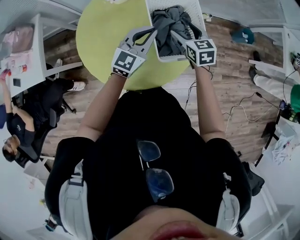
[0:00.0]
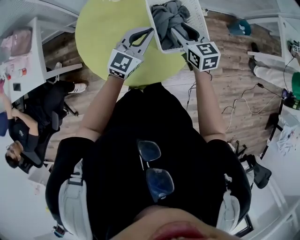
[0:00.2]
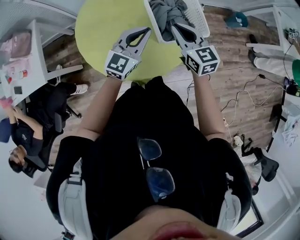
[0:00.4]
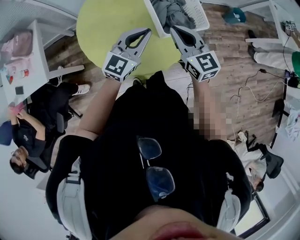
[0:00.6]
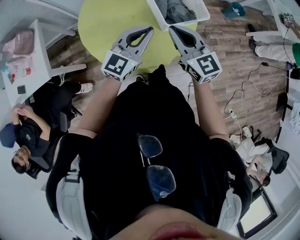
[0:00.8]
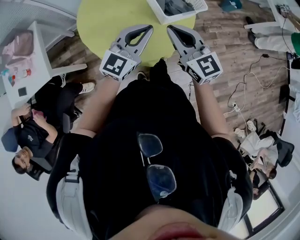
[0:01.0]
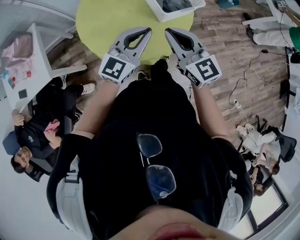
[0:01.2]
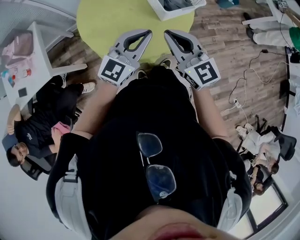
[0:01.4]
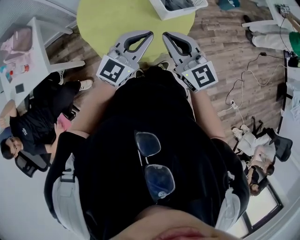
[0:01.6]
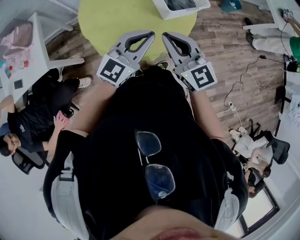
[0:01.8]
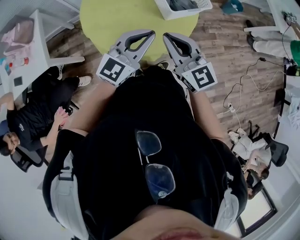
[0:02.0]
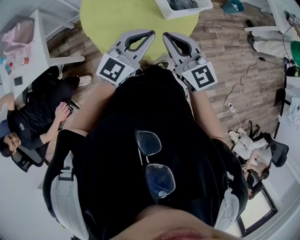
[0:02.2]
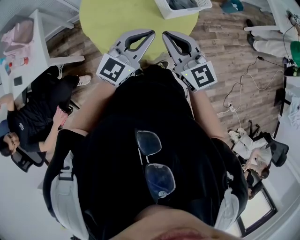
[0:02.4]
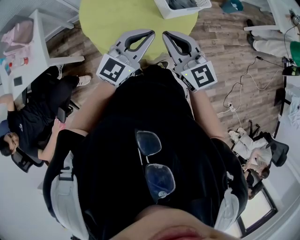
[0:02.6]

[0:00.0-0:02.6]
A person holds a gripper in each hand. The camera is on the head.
0.0 to 1.2 s: The left gripper is displaced backward by roughly 25 cm, while the right gripper moves backward and upward, roughly 35 cm, rotates roughly 30 degrees, and closes.
1.2 to 2.6 s: The grippers stay close to where they were, moving slightly.

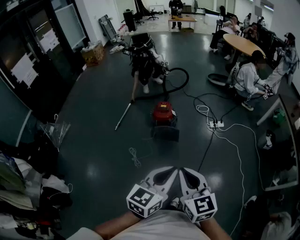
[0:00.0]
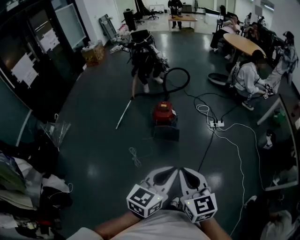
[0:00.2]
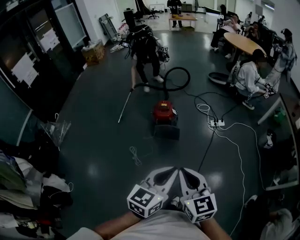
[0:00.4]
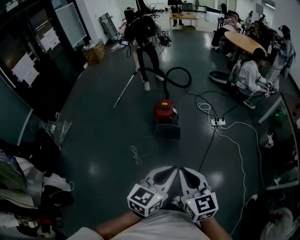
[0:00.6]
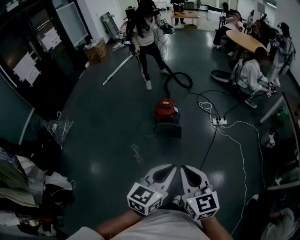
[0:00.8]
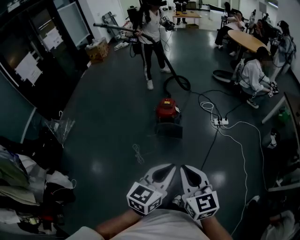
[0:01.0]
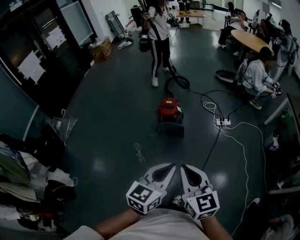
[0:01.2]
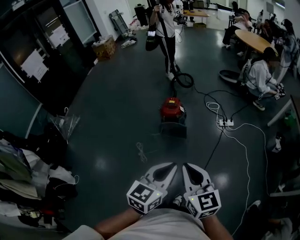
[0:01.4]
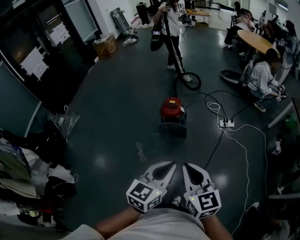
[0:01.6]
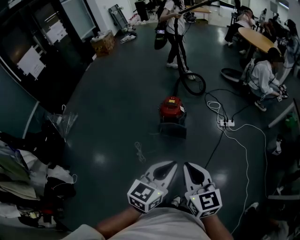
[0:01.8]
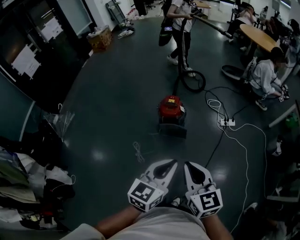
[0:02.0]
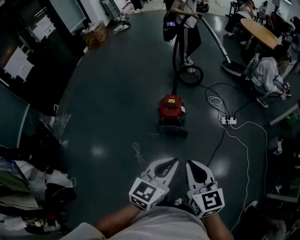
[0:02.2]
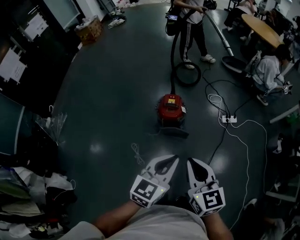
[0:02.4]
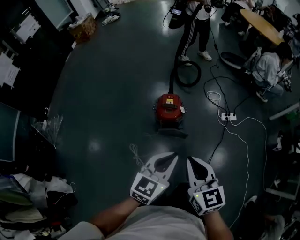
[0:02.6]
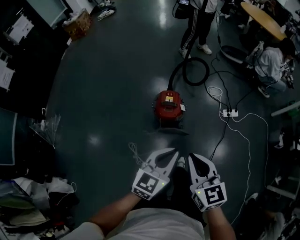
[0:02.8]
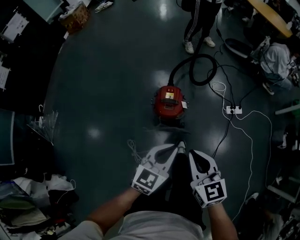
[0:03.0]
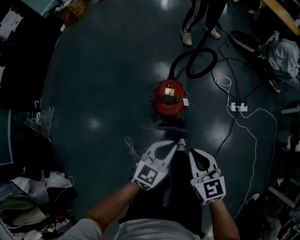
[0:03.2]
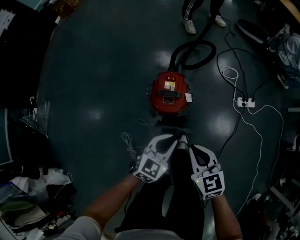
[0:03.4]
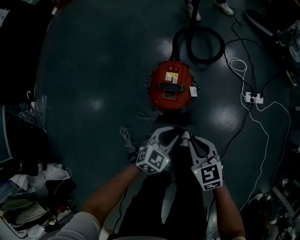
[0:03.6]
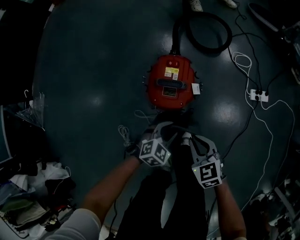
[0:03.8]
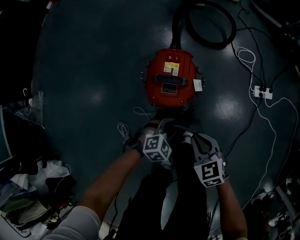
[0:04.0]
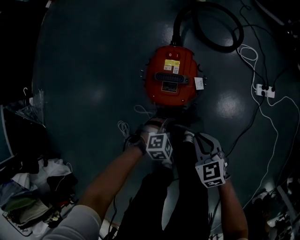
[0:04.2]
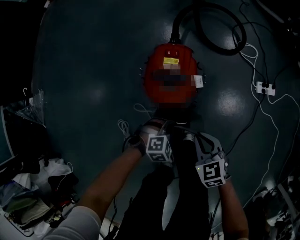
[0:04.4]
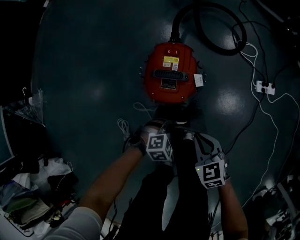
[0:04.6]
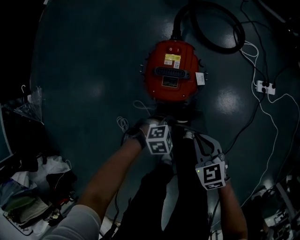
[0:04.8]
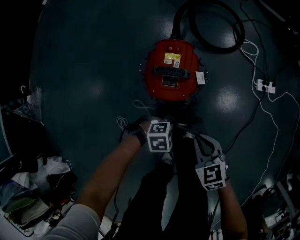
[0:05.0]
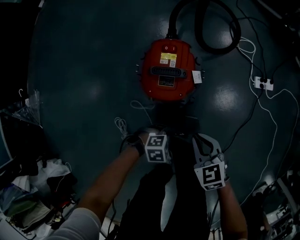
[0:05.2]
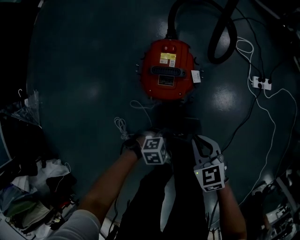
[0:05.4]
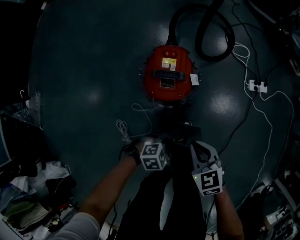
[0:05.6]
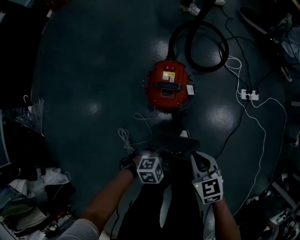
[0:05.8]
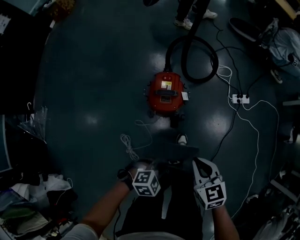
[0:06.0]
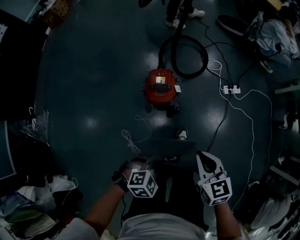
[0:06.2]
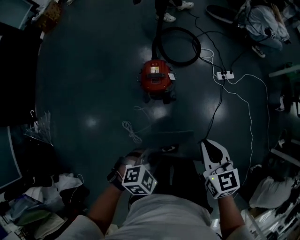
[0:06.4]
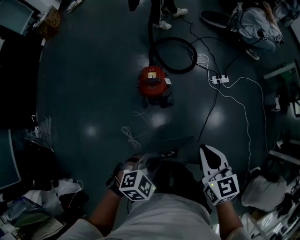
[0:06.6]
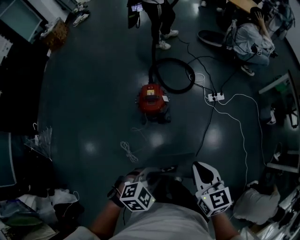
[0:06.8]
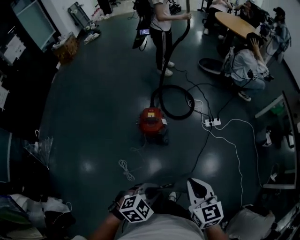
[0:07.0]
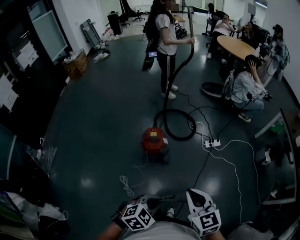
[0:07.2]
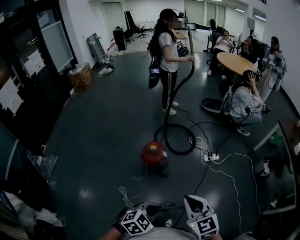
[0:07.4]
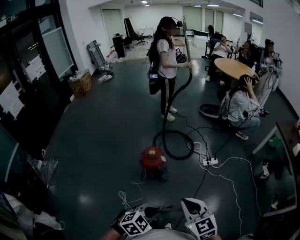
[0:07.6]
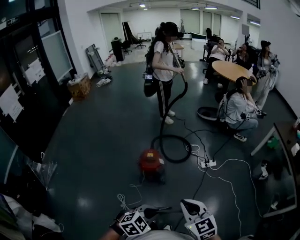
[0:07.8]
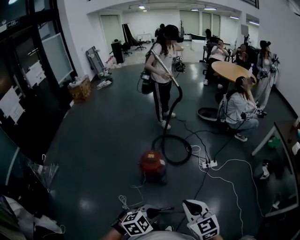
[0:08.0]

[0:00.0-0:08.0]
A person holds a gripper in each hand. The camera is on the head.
0.0 to 1.6 s: The right gripper changes place by approximately 5 cm, while the left gripper changes place by some 5 cm.
1.6 to 3.2 s: Both grippers are carried forward, roughly 50 cm. The grippers both shift downward by some 30 cm.
3.2 to 4.8 s: The grippers both shift downward by roughly 40 cm. The right gripper swivels approximately 20 degrees. Meanwhile the left gripper points its fingers some 40 degrees further downward, and opens, then closes once more.
4.8 to 6.4 s: The grippers both shift upward by some 50 cm. The right gripper changes its angle by roughly 30 degrees.
6.4 to 8.0 s: The left gripper goes roughly 25 cm to the right, upward and backward. Meanwhile the right gripper moves upward, backward and to the right, about 25 cm, and swivels some 20 degrees.

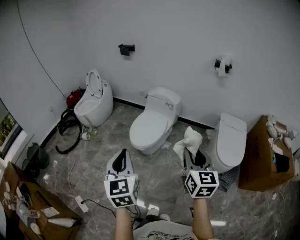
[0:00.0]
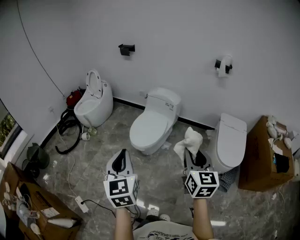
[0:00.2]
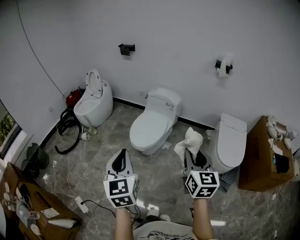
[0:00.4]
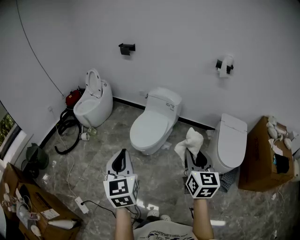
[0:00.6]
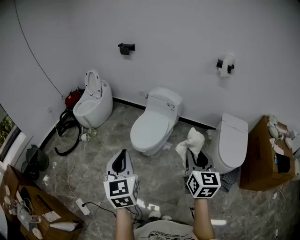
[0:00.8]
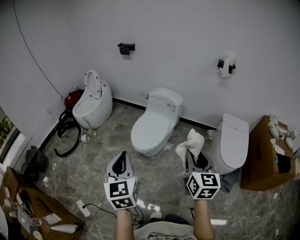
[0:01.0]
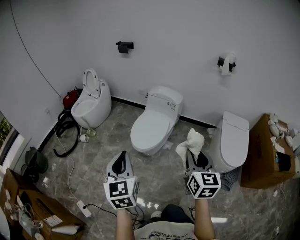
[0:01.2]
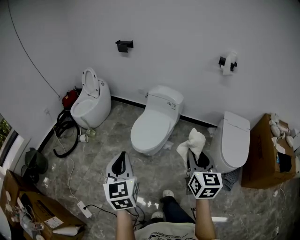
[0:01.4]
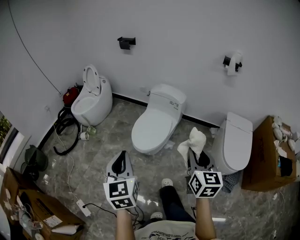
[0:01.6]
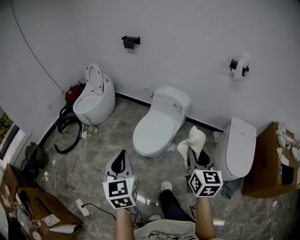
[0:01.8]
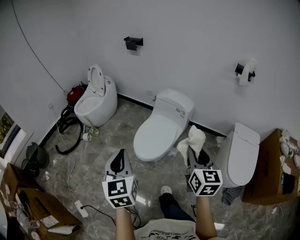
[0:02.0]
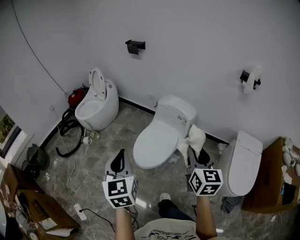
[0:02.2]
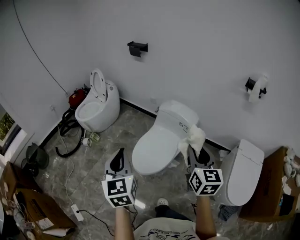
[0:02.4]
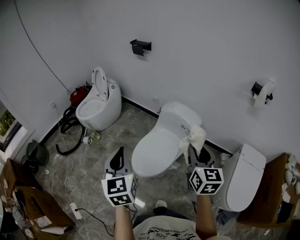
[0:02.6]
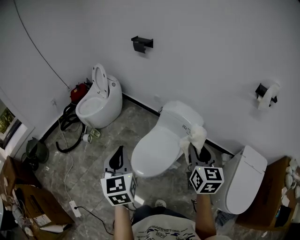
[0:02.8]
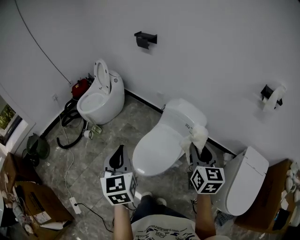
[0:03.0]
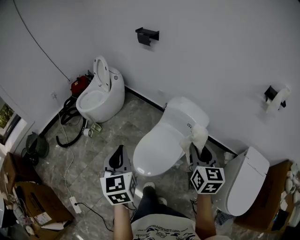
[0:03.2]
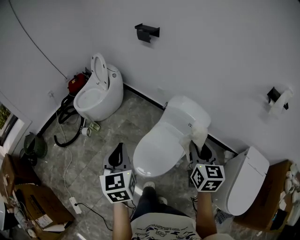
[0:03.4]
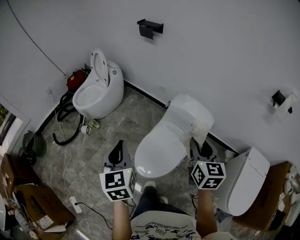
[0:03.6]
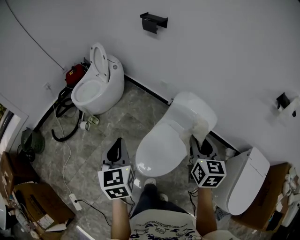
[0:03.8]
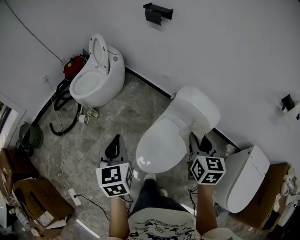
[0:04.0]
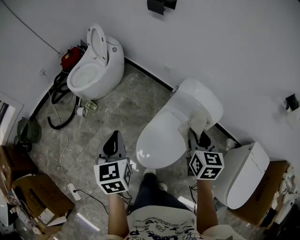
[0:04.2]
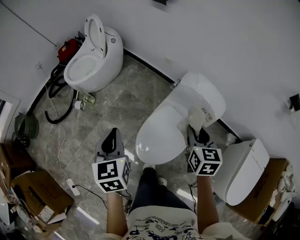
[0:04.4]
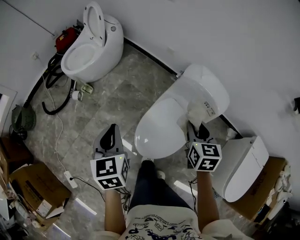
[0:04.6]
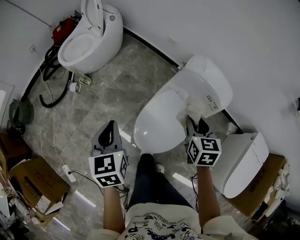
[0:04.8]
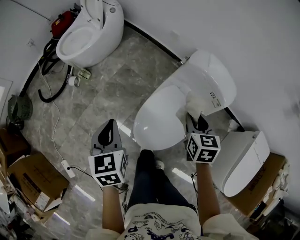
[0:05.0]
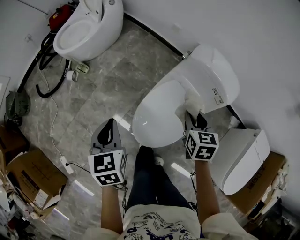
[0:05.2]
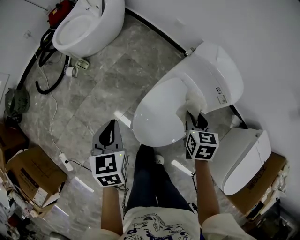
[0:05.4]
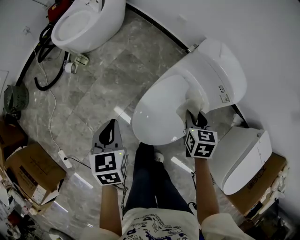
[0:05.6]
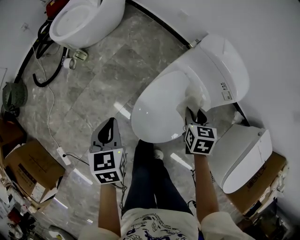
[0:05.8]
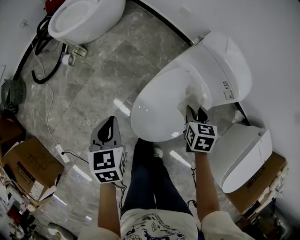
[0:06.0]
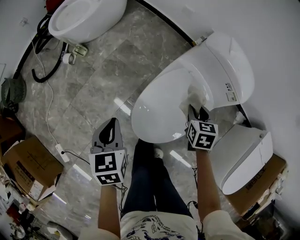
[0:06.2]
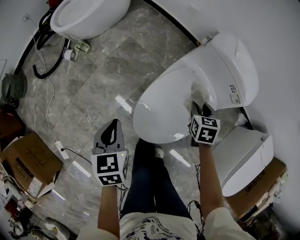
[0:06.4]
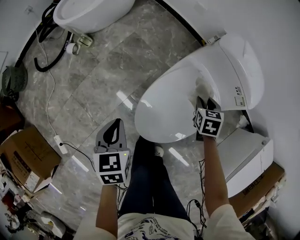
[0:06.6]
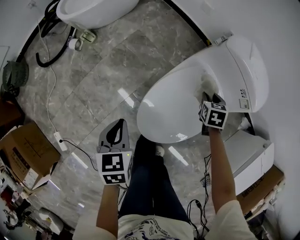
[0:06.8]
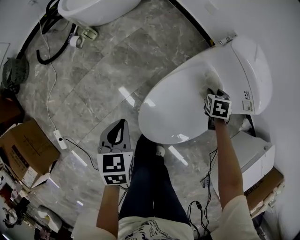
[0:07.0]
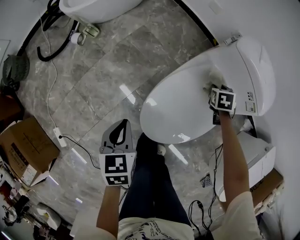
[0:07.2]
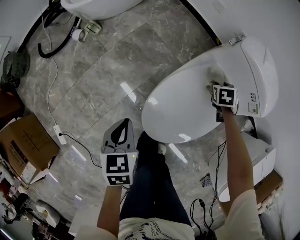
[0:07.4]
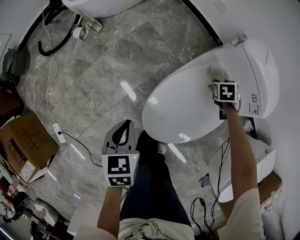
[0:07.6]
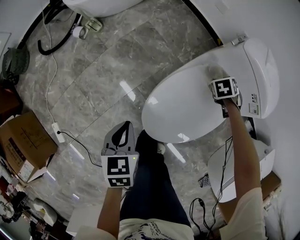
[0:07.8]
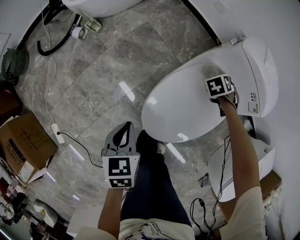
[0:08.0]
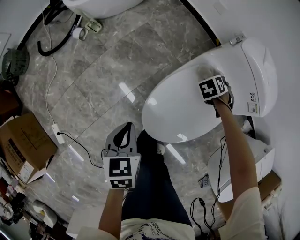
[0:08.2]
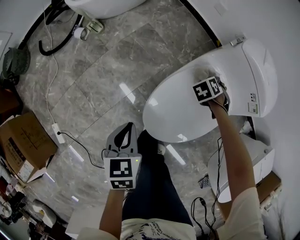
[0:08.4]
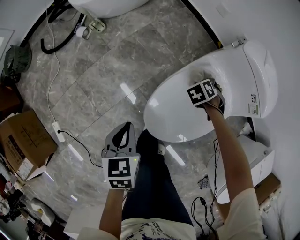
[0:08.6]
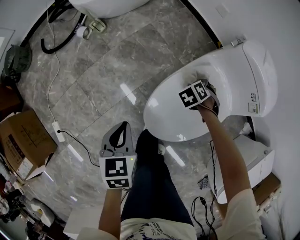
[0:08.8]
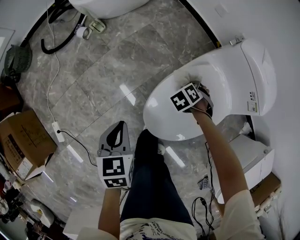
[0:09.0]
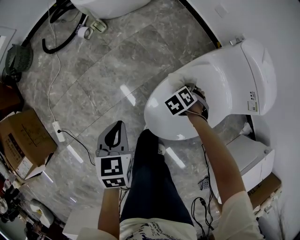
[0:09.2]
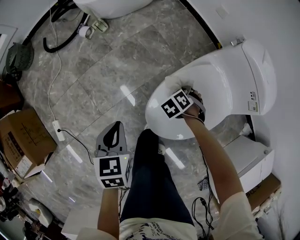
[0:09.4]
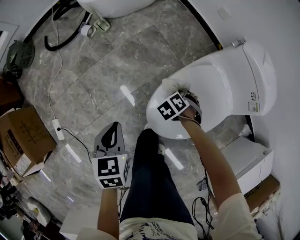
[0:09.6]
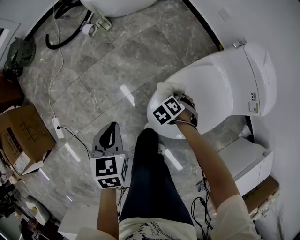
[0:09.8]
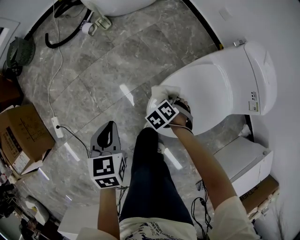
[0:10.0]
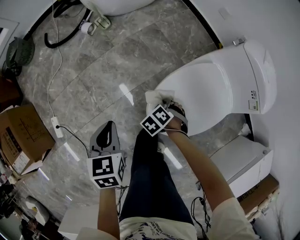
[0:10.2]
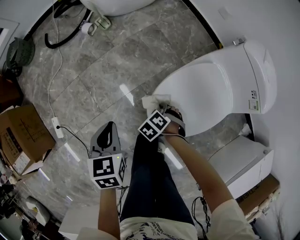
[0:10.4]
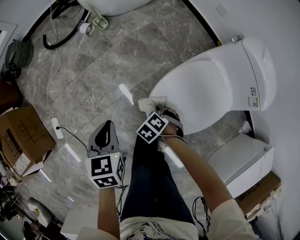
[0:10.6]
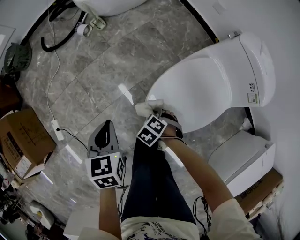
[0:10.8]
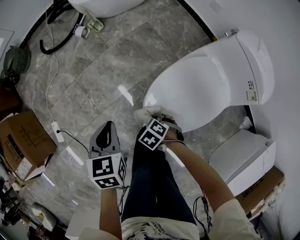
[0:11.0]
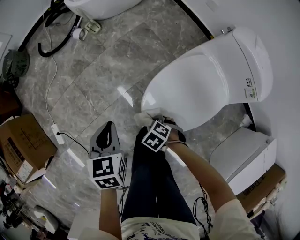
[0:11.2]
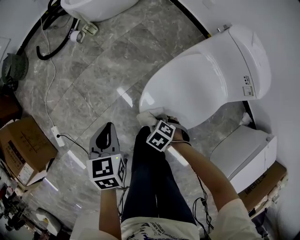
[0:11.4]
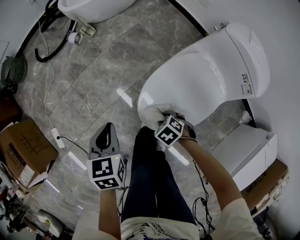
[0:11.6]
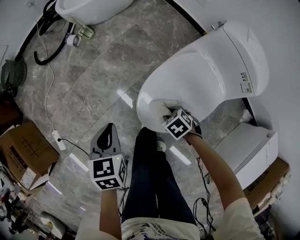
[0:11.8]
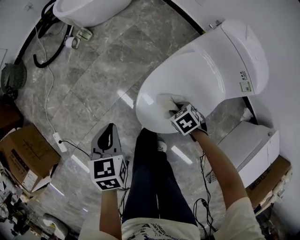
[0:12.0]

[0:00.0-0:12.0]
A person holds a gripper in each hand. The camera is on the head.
0.0 to 1.6 s: The two grippers go roughly 10 cm forward.
1.6 to 3.0 s: The grippers both shift forward by roughly 35 cm.
3.0 to 4.4 s: The two grippers go roughly 25 cm forward, downward and to the left.
4.4 to 6.0 s: The two grippers go approximately 25 cm downward. The right gripper rotates some 20 degrees.
6.0 to 7.6 s: The right gripper moves downward and forward, approximately 20 cm, and changes its angle by approximately 30 degrees. Meanwhile the left gripper moves downward, some 10 cm.
7.6 to 9.0 s: The right gripper shifts by roughly 20 cm, and changes its angle by approximately 30 degrees.
9.0 to 10.4 s: The left gripper ends up about 5 cm from where it was. Meanwhile the right gripper changes place by approximately 20 cm.
10.4 to 12.0 s: The left gripper shifts by about 5 cm, while the right gripper moves some 15 cm, and swivels approximately 30 degrees.

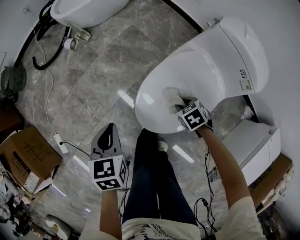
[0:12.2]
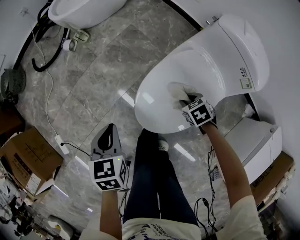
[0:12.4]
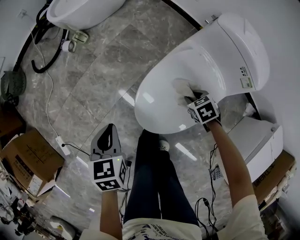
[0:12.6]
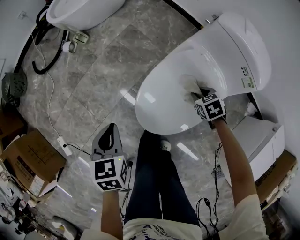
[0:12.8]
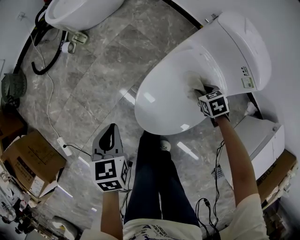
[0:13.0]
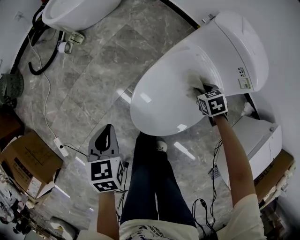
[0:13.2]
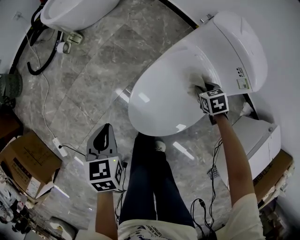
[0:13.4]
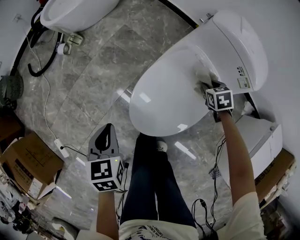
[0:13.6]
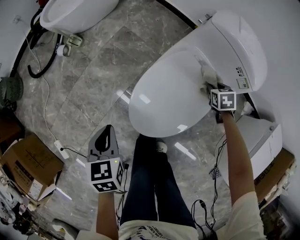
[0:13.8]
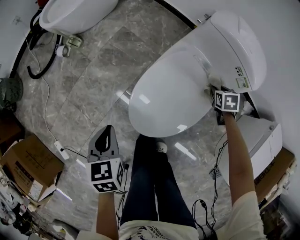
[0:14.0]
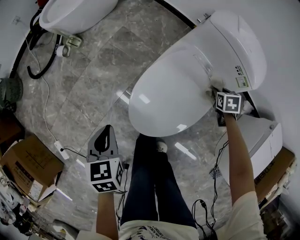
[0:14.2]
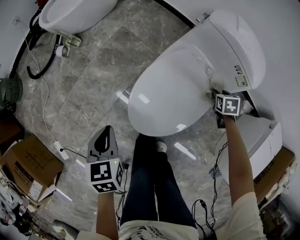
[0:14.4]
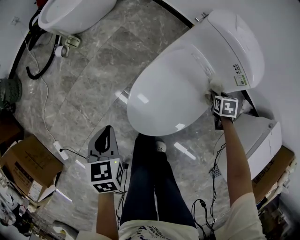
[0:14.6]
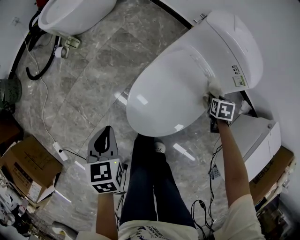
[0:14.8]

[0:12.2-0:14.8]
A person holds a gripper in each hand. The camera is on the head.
12.2 to 13.4 s: The right gripper travels to the right by some 15 cm.
13.4 to 14.8 s: The right gripper heads to the right, covering approximately 10 cm, and swivels roughly 30 degrees.
